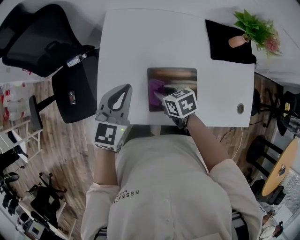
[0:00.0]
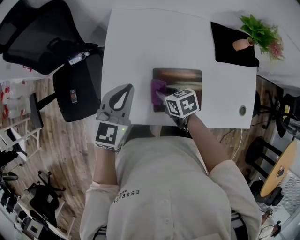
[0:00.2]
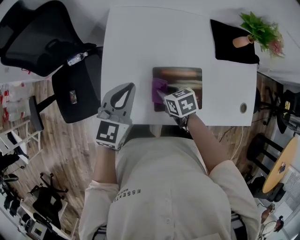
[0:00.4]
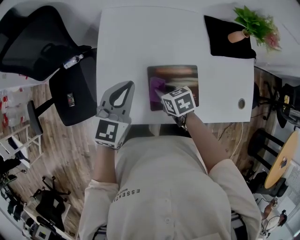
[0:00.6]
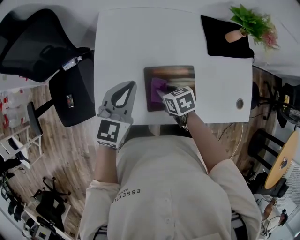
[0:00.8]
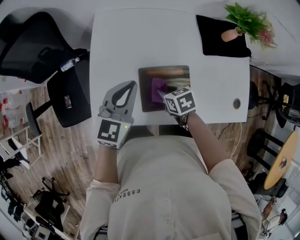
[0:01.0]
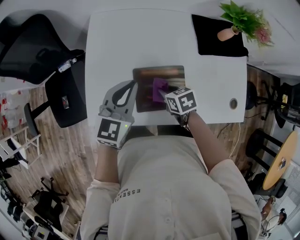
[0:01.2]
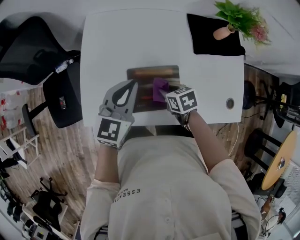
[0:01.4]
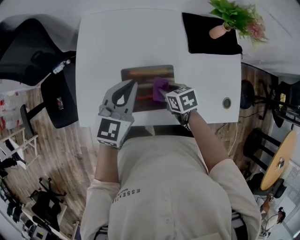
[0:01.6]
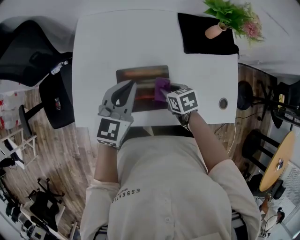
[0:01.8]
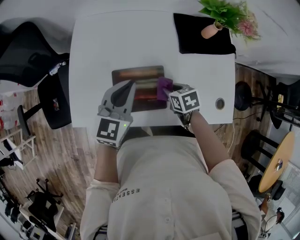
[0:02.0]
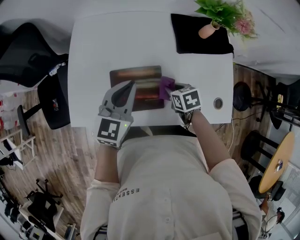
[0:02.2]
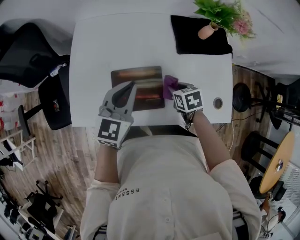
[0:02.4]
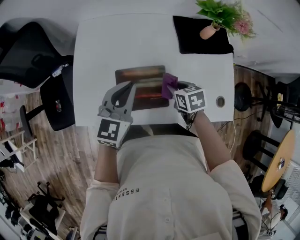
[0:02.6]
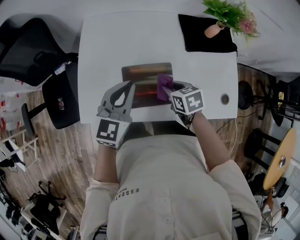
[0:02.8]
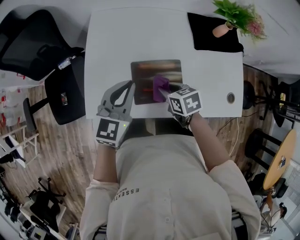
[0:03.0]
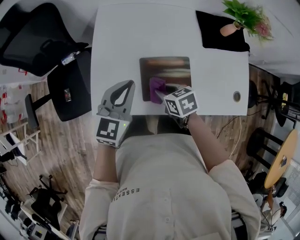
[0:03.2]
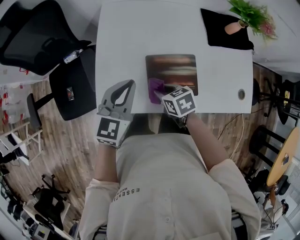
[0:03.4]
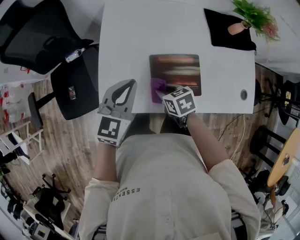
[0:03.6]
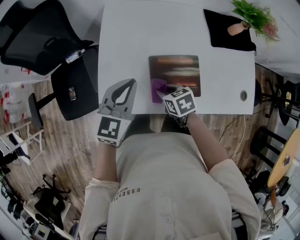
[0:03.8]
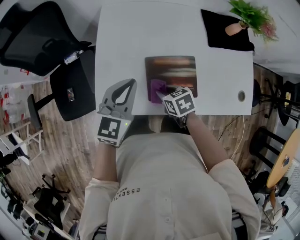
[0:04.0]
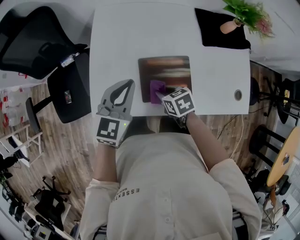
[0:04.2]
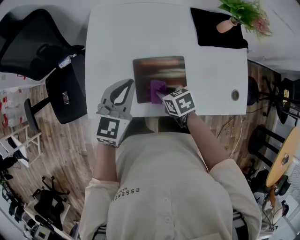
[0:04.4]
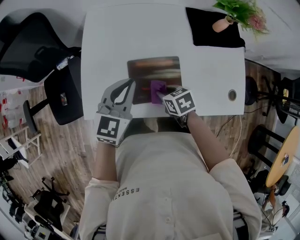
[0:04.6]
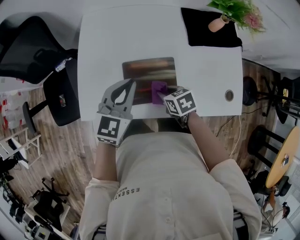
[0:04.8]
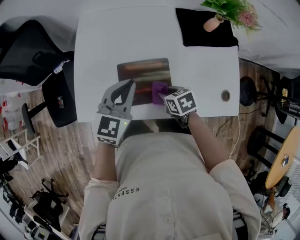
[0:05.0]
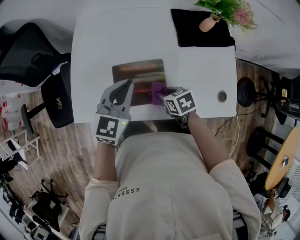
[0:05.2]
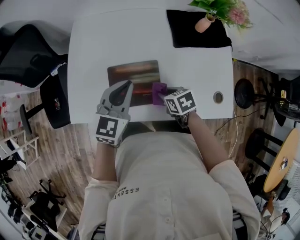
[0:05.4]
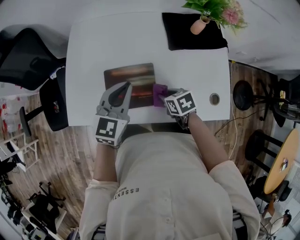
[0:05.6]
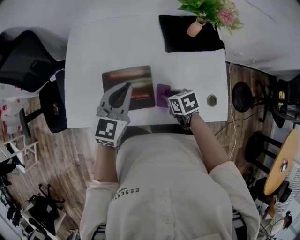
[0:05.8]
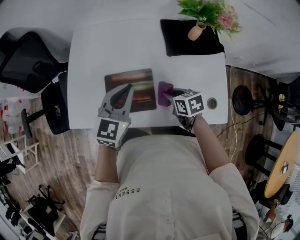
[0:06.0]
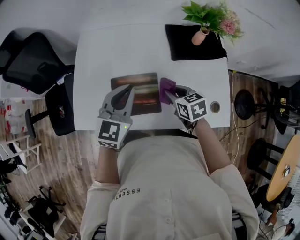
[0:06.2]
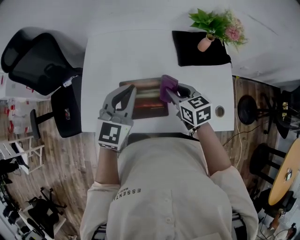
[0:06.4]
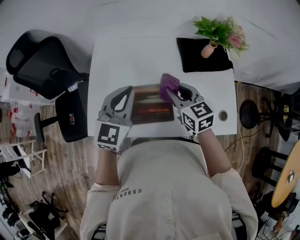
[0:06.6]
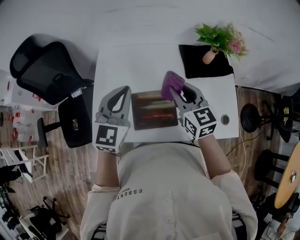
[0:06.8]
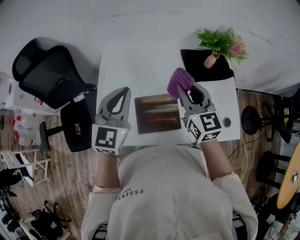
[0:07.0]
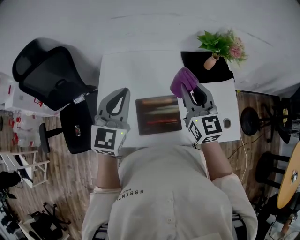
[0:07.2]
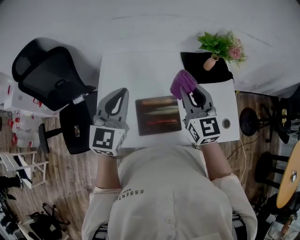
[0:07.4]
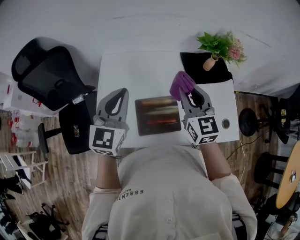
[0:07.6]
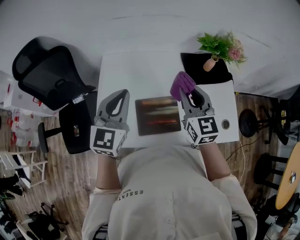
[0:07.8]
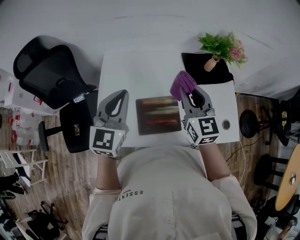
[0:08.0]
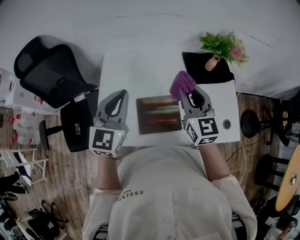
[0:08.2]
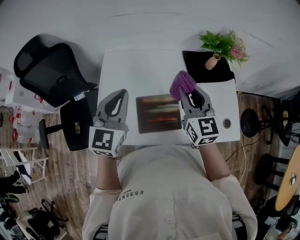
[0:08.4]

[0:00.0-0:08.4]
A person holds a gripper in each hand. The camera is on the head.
0:00.0 to 0:01.4: The grippers both shift to the right by some 10 cm.
0:01.4 to 0:02.8: The right gripper goes some 5 cm upward, and travels to the right and back again, roughly 10 cm each way.
0:02.8 to 0:04.2: The right gripper heads to the left and downward, covering roughly 10 cm. The left gripper moves to the left, approximately 10 cm.
0:04.2 to 0:05.6: The two grippers go approximately 15 cm to the right.
0:05.6 to 0:07.0: The right gripper shifts roughly 30 cm upward, and points its fingers approximately 50 degrees further upward, while the left gripper shifts some 20 cm upward and to the left.
0:07.0 to 0:08.4: The grippers move only a little.

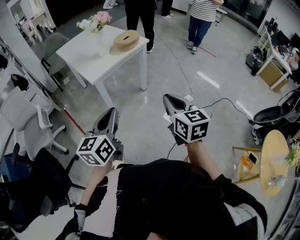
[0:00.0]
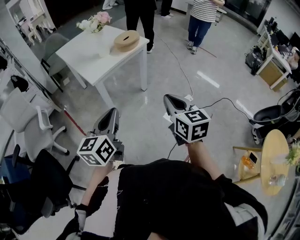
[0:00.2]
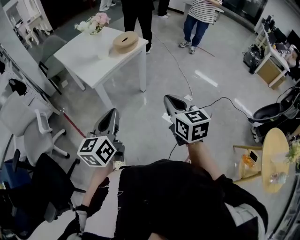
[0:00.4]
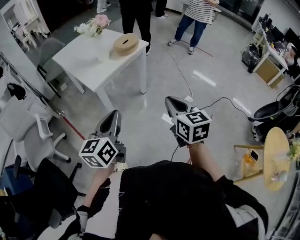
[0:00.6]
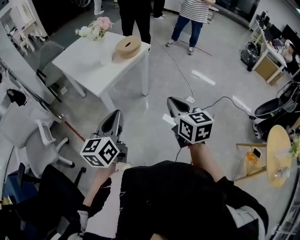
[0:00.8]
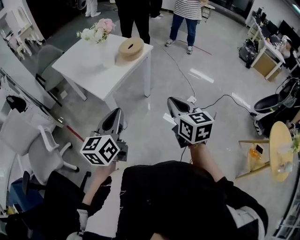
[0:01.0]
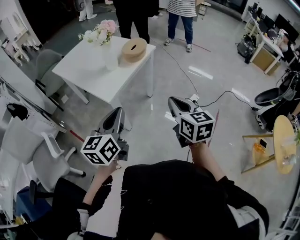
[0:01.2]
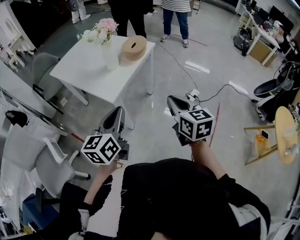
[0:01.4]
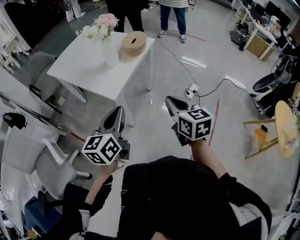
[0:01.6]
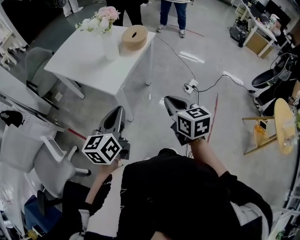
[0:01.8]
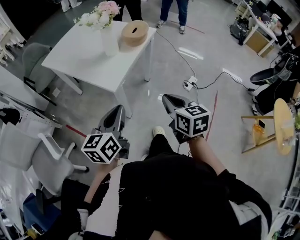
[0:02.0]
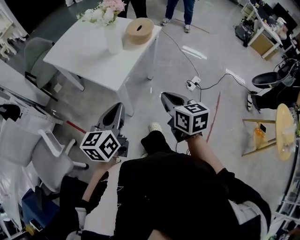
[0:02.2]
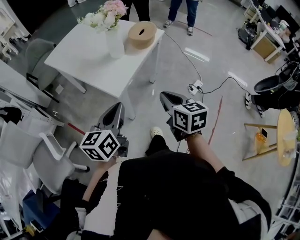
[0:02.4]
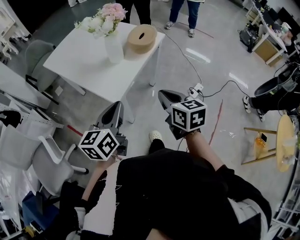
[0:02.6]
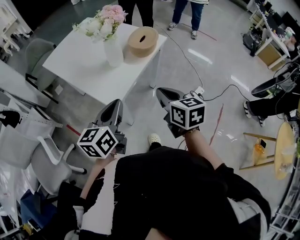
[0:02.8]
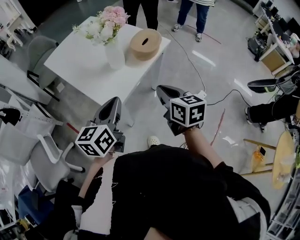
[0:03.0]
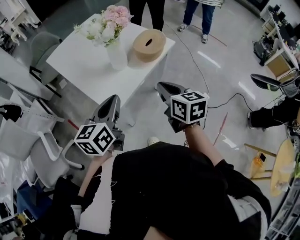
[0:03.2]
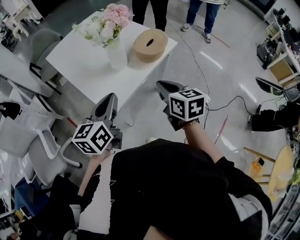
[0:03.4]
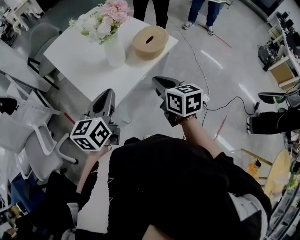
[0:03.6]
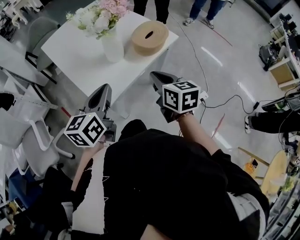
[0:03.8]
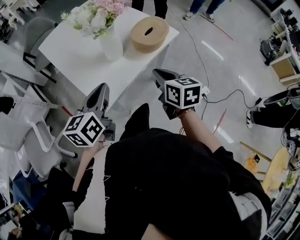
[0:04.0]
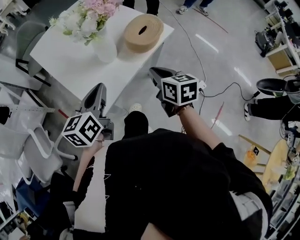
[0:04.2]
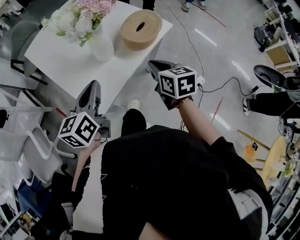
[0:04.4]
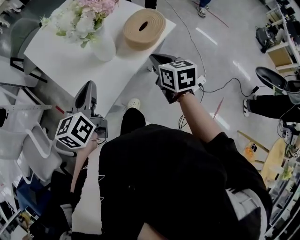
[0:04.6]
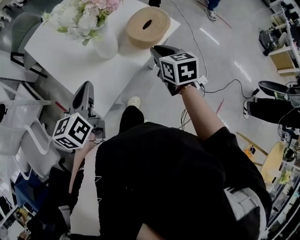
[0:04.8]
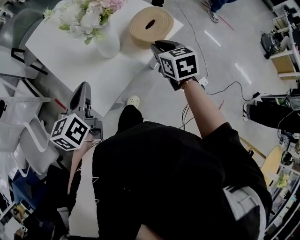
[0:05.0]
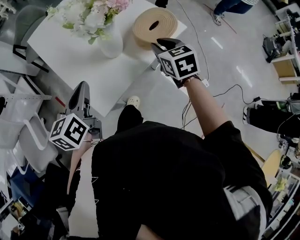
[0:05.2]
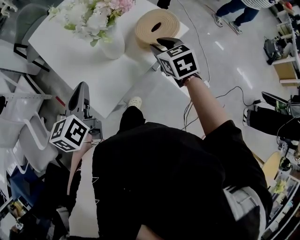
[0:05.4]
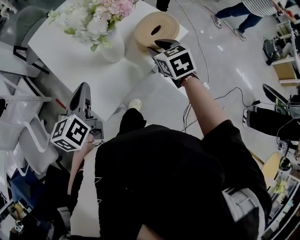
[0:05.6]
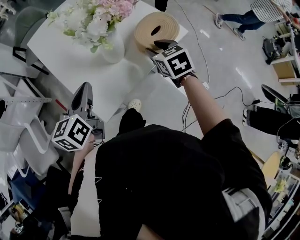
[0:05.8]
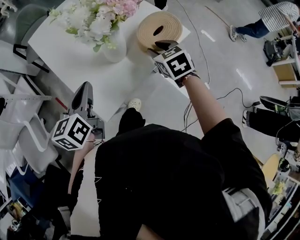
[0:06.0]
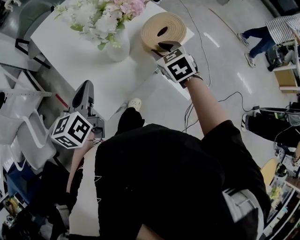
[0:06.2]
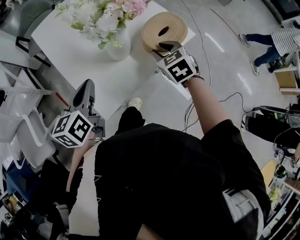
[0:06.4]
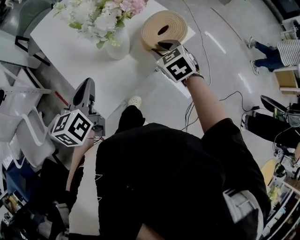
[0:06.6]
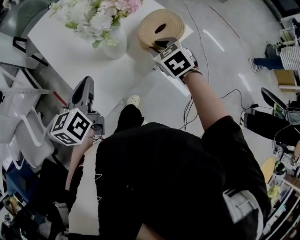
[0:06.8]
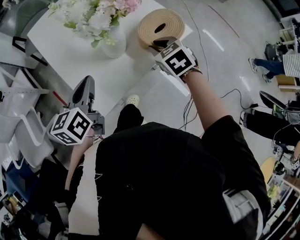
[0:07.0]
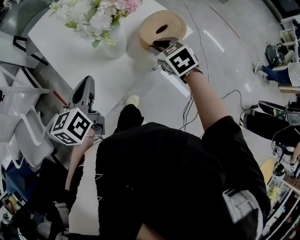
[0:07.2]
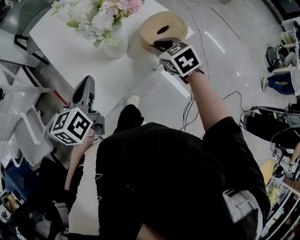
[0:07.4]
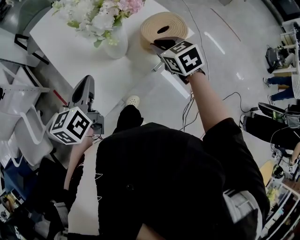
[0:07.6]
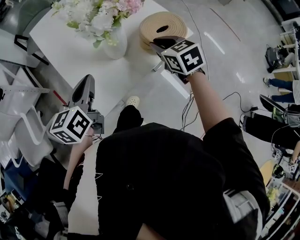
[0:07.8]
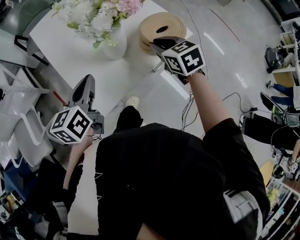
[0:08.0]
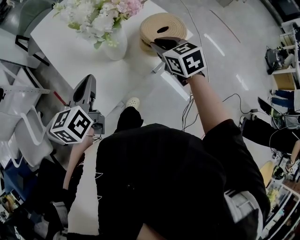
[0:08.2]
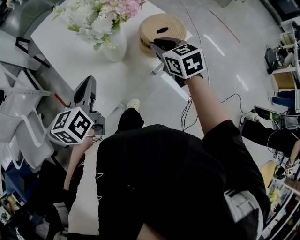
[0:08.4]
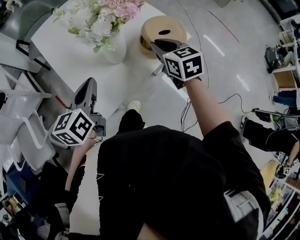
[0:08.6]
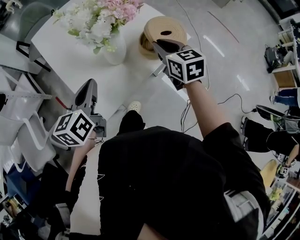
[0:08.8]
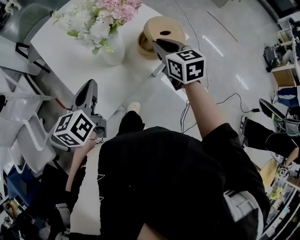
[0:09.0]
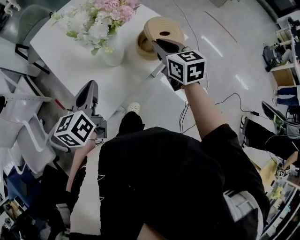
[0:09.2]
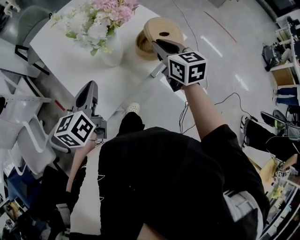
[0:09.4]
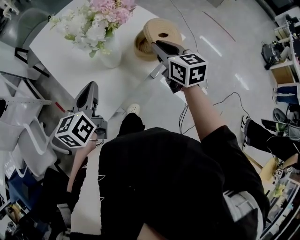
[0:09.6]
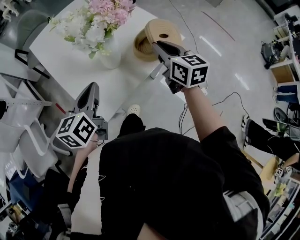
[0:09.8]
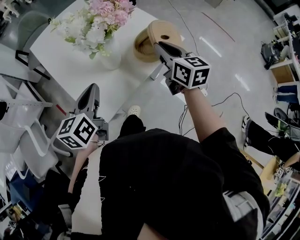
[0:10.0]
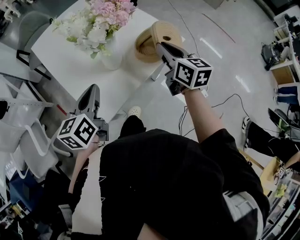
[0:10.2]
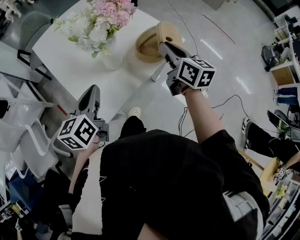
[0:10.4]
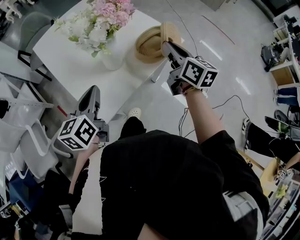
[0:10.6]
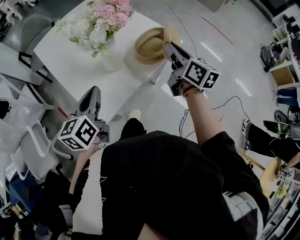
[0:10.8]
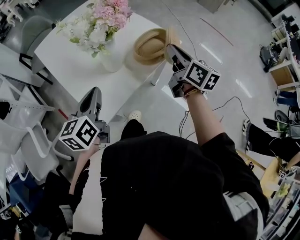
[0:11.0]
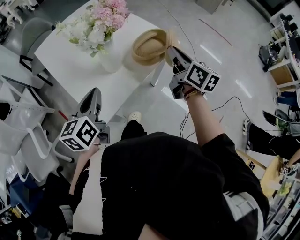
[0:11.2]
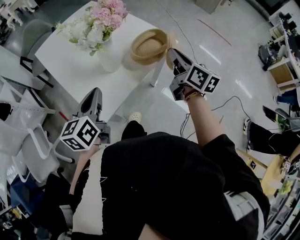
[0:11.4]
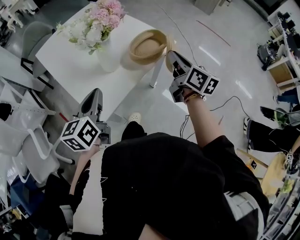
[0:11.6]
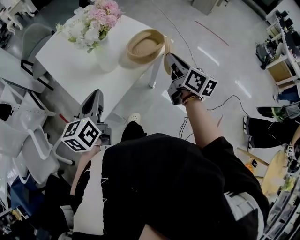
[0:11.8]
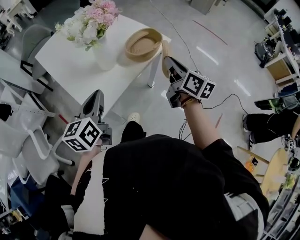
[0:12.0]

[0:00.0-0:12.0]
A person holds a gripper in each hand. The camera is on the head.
0:00.0 to 0:01.6: The grippers both shift to the left and forward by roughly 25 cm.
0:01.6 to 0:03.0: The grippers both shift forward by roughly 20 cm.
0:03.0 to 0:04.4: The left gripper is displaced forward by roughly 10 cm. The right gripper heads forward and downward, covering roughly 15 cm.
0:04.4 to 0:06.0: The right gripper shifts about 10 cm forward, changes its angle by roughly 30 degrees, and opens. Meanwhile the left gripper goes roughly 5 cm to the left.
0:06.0 to 0:07.6: The grippers move only a little.
0:07.6 to 0:09.0: The right gripper moves roughly 5 cm, and turns by approximately 20 degrees.
0:09.0 to 0:10.4: The right gripper changes place by some 5 cm, and turns by approximately 20 degrees.
0:10.4 to 0:12.0: The right gripper travels backward and to the right by some 10 cm. Meanwhile the left gripper is displaced backward by some 5 cm.

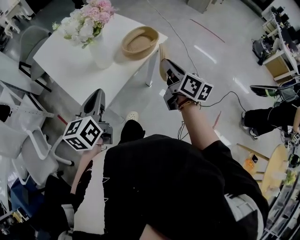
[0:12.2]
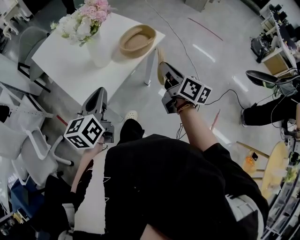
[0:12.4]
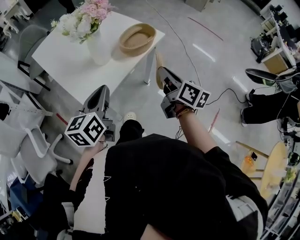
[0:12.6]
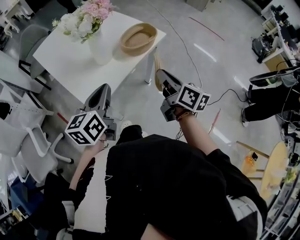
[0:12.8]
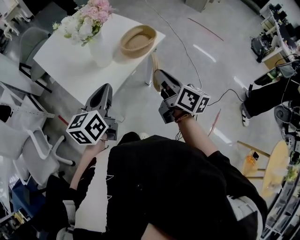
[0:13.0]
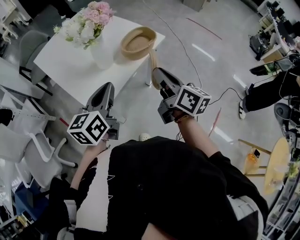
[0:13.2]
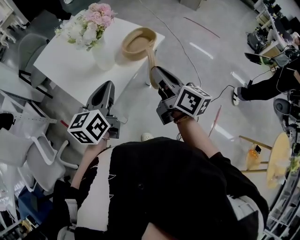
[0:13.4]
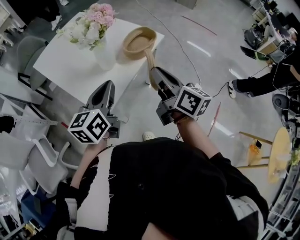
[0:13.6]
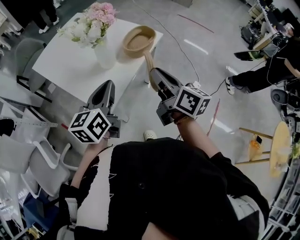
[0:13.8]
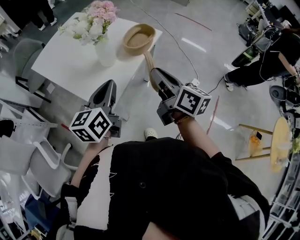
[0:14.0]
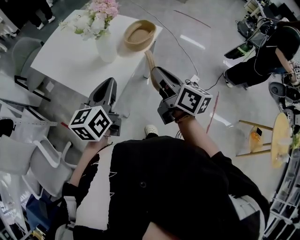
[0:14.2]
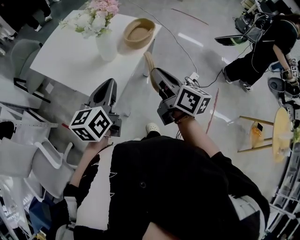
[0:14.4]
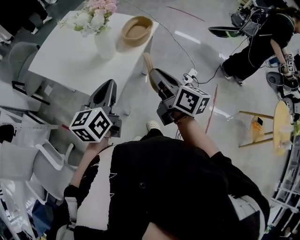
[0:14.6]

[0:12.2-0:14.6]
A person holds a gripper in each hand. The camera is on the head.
0:12.2 to 0:13.4: The right gripper goes about 10 cm backward, upward and to the left.
0:13.4 to 0:14.6: The right gripper is displaced backward and to the left by approximately 10 cm. The left gripper goes approximately 5 cm to the left.

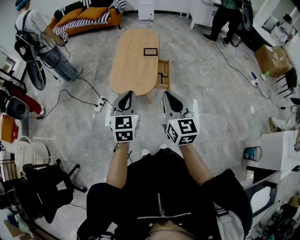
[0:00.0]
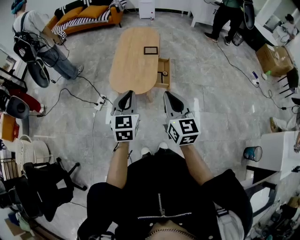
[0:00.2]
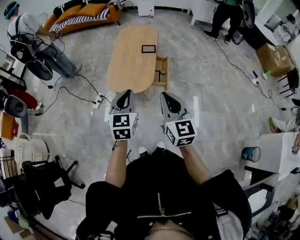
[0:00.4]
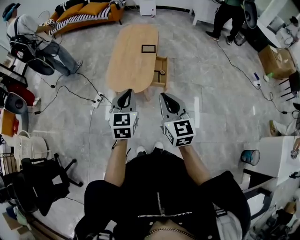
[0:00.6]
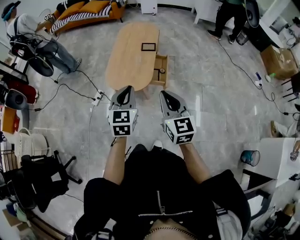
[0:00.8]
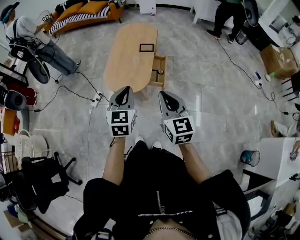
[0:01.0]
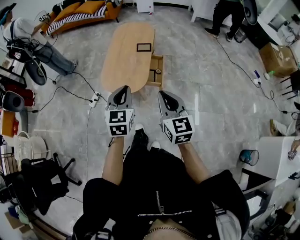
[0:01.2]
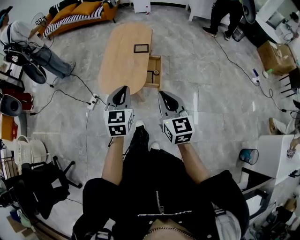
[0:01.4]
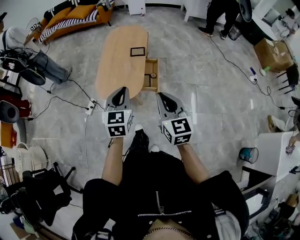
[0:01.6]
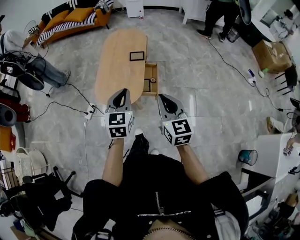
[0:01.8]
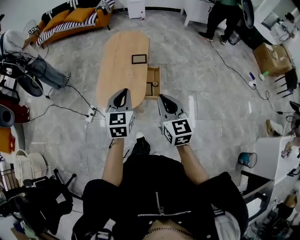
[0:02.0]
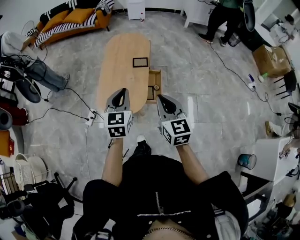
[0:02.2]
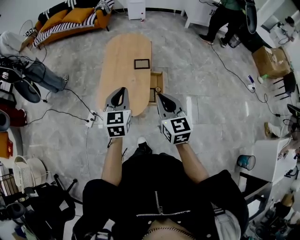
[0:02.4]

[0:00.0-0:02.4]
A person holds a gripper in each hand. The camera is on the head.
0:00.0 to 0:01.2: The right gripper heads to the right, covering roughly 10 cm. The left gripper shifts about 10 cm to the right and forward.
0:01.2 to 0:02.4: The grippers both shift forward by approximately 20 cm.
